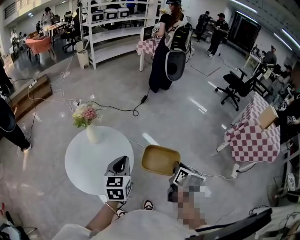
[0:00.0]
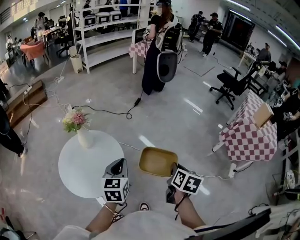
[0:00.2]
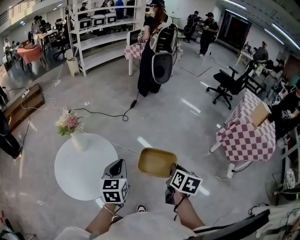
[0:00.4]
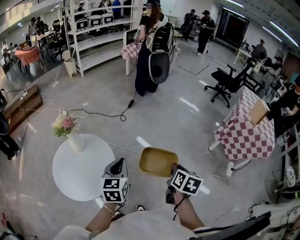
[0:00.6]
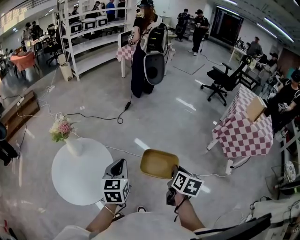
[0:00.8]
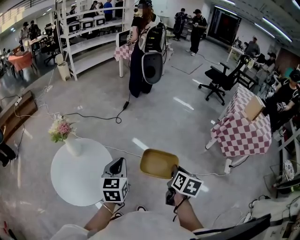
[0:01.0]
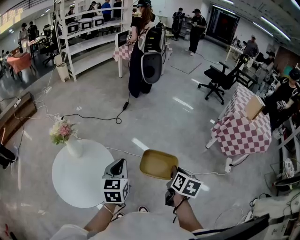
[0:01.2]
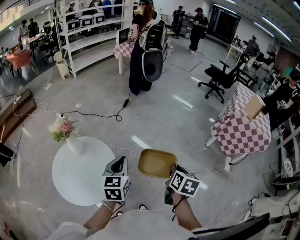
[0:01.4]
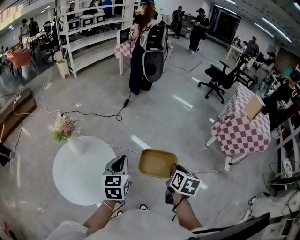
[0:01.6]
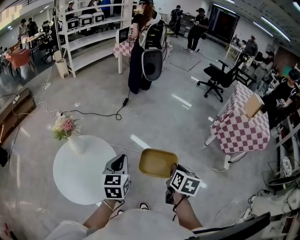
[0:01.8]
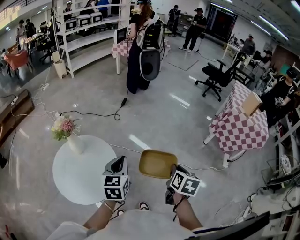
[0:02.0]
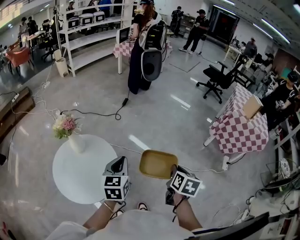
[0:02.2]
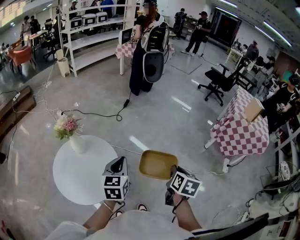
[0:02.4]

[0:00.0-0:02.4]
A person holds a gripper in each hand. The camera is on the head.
0:00.0 to 0:01.2: The left gripper is displaced to the right and forward by approximately 10 cm; the right gripper is displaced to the right by about 10 cm.
0:01.2 to 0:02.4: There are only small adjustments of the grippers.

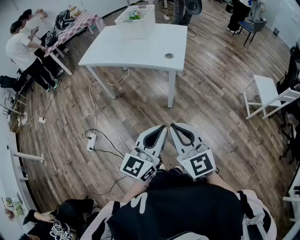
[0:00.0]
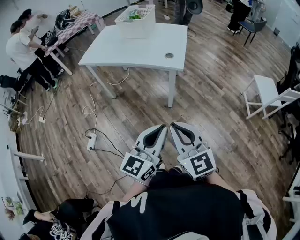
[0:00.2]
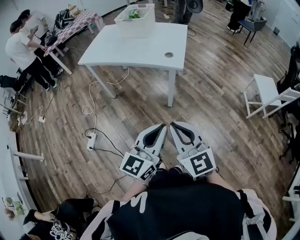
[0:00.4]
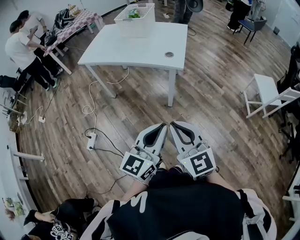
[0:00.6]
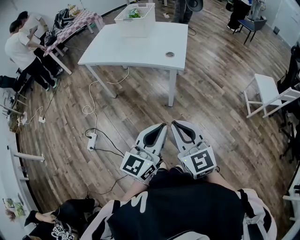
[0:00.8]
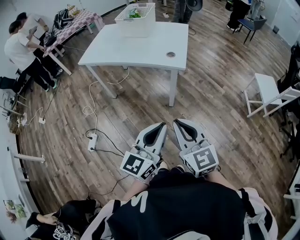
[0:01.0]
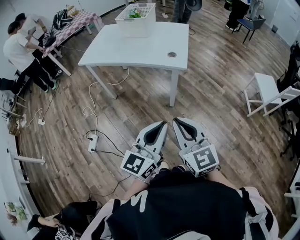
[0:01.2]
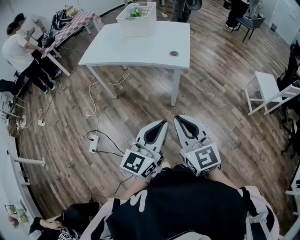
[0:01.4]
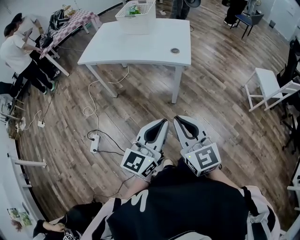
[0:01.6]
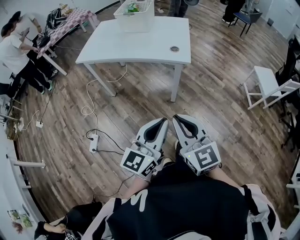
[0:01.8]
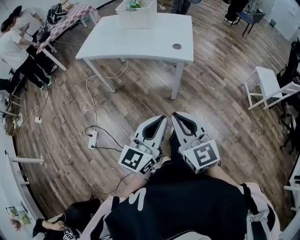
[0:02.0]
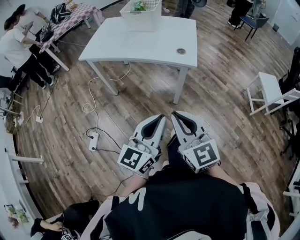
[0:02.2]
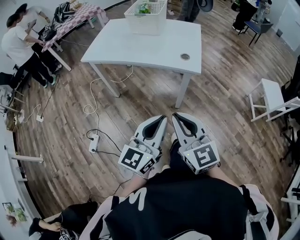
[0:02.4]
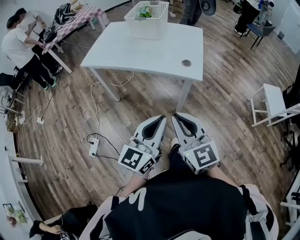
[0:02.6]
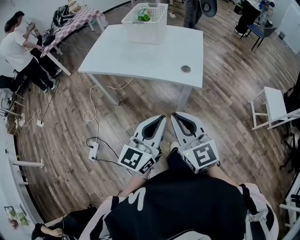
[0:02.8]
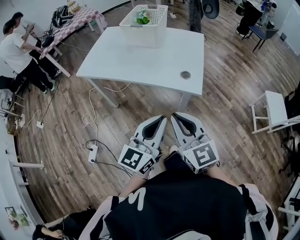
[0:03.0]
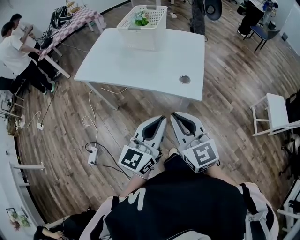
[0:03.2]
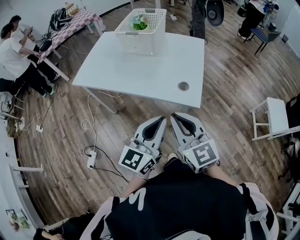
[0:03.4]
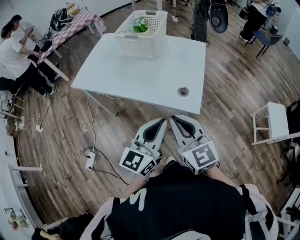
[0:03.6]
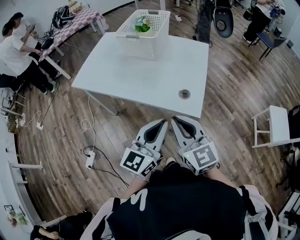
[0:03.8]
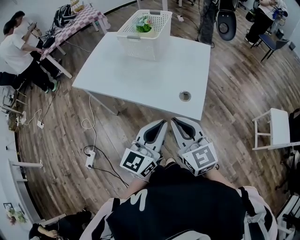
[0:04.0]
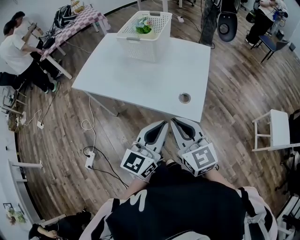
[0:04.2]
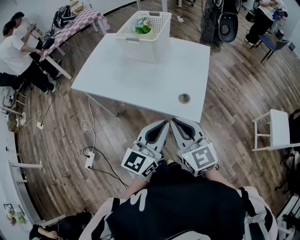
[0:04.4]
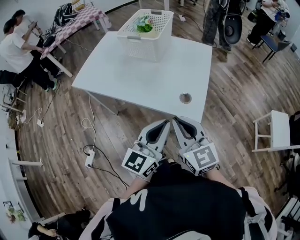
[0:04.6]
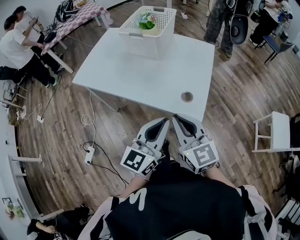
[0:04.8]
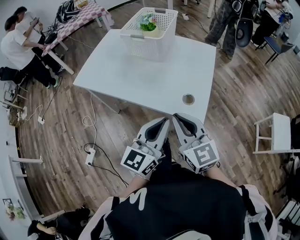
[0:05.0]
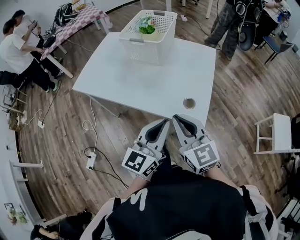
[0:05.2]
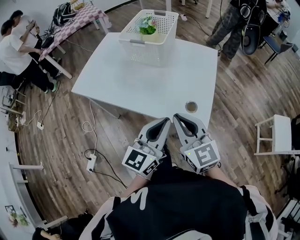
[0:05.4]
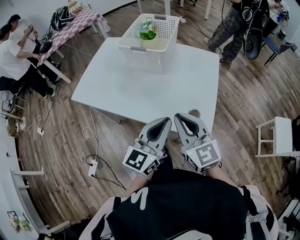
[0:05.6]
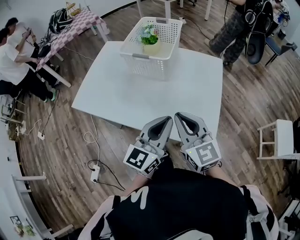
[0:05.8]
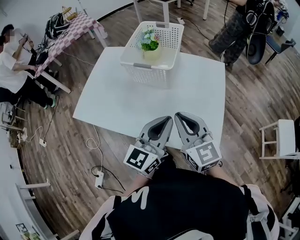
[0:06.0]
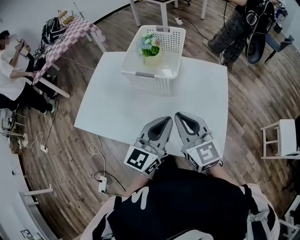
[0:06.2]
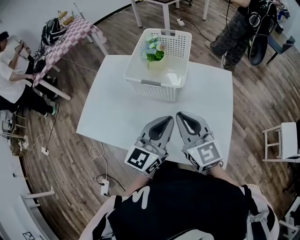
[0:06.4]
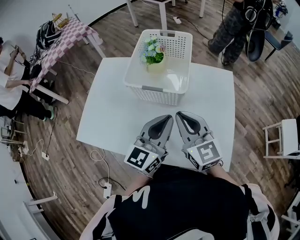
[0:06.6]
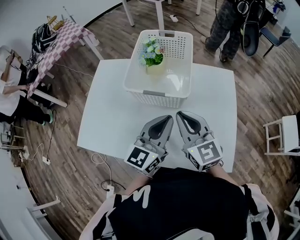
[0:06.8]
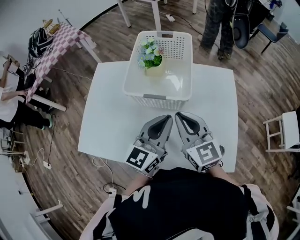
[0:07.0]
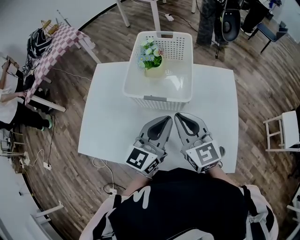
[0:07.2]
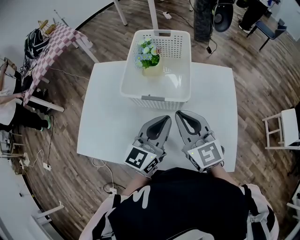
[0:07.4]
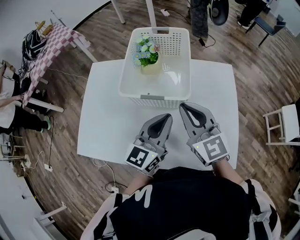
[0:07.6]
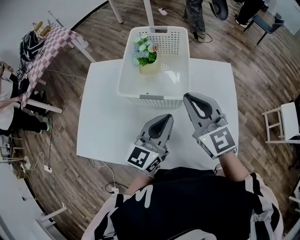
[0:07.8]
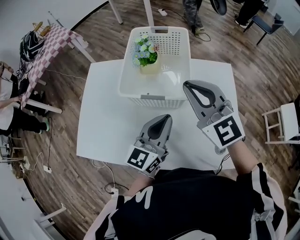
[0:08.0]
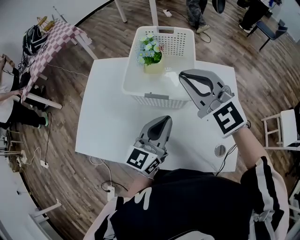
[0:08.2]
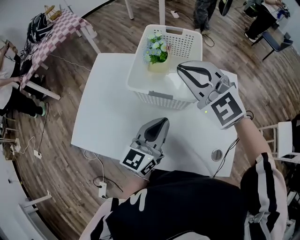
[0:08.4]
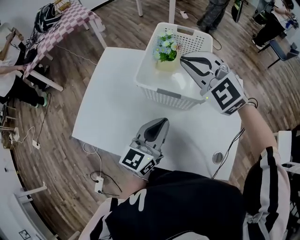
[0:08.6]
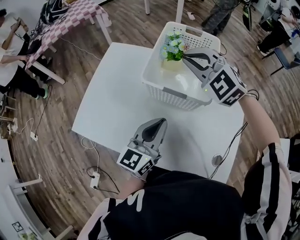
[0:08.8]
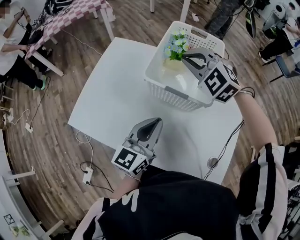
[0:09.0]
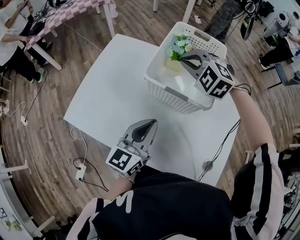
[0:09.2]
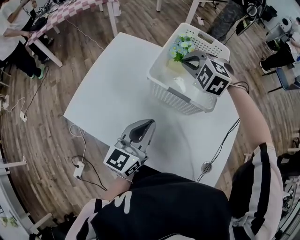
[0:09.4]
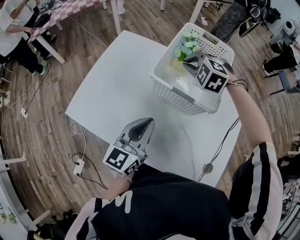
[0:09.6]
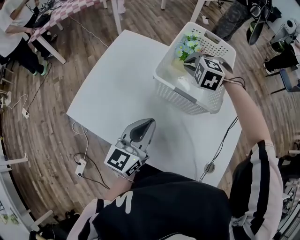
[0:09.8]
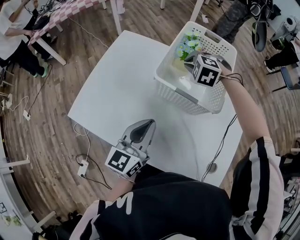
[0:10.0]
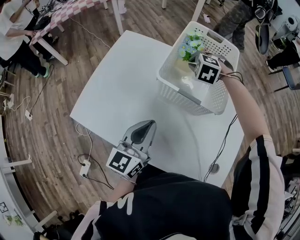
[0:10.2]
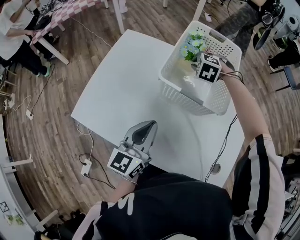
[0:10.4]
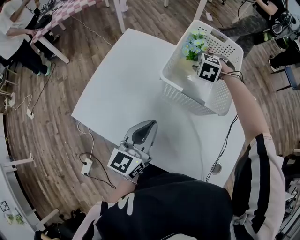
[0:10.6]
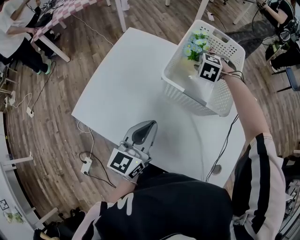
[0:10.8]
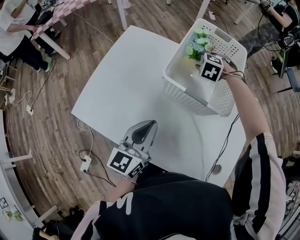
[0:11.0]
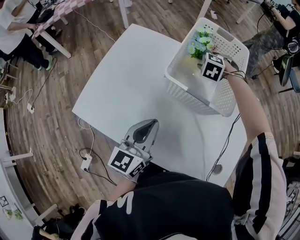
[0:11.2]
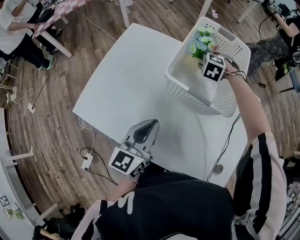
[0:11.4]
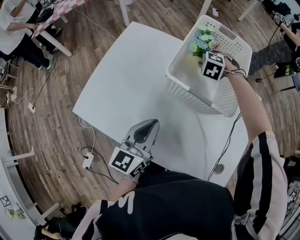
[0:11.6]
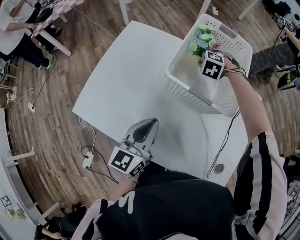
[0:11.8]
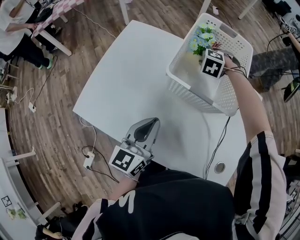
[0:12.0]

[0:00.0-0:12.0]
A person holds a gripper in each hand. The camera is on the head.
0:00.0 to 0:01.6: Both grippers travel together to the left, about 5 cm.
0:01.6 to 0:03.0: Both grippers move forward, some 20 cm.
0:03.0 to 0:04.4: The two grippers go about 15 cm forward.
0:04.4 to 0:06.0: Both grippers move forward, about 20 cm.
0:06.0 to 0:07.6: The right gripper moves forward, approximately 15 cm. Meanwhile the left gripper goes roughly 15 cm forward and to the left.
0:07.6 to 0:09.0: The left gripper travels to the left by roughly 5 cm. The right gripper heads forward and to the left, covering some 20 cm, and rolls counterclockwise, seen from behind, by roughly 50 degrees.
0:09.0 to 0:10.4: The left gripper travels to the left by approximately 5 cm; the right gripper moves downward and forward, some 20 cm, and tips its fingers downward by approximately 30 degrees.
0:10.4 to 0:12.0: The grippers make only small movements.

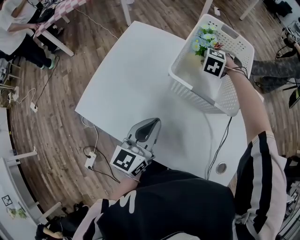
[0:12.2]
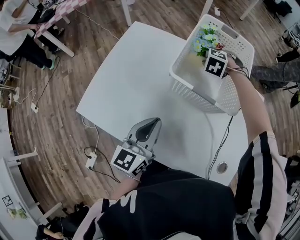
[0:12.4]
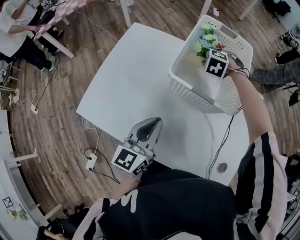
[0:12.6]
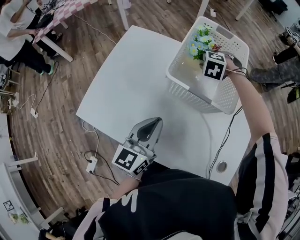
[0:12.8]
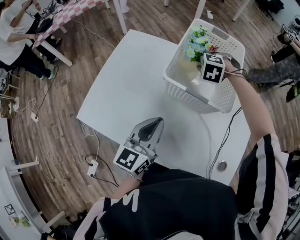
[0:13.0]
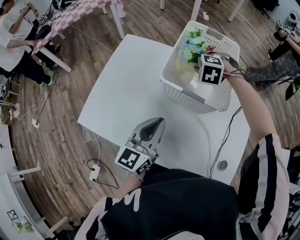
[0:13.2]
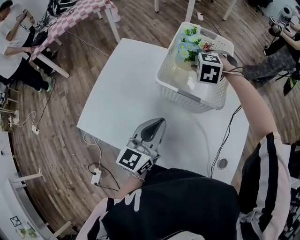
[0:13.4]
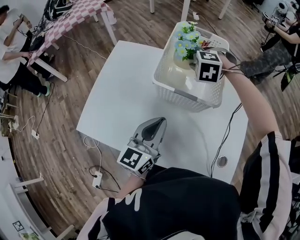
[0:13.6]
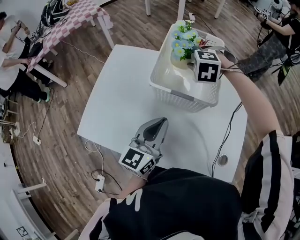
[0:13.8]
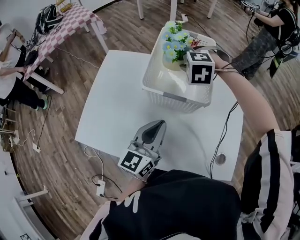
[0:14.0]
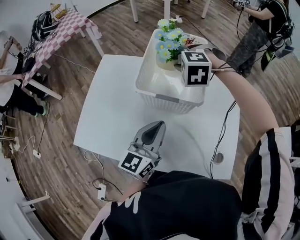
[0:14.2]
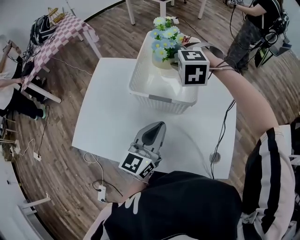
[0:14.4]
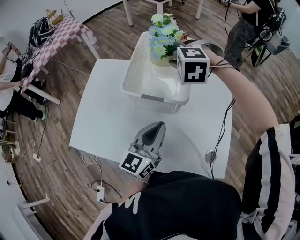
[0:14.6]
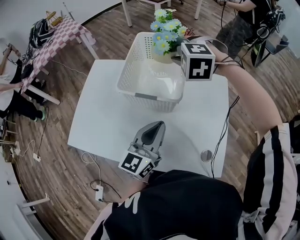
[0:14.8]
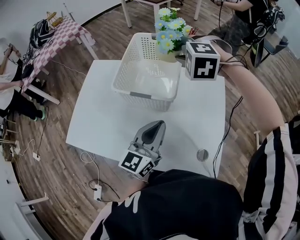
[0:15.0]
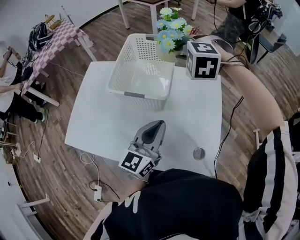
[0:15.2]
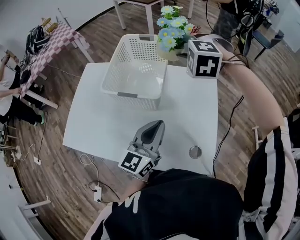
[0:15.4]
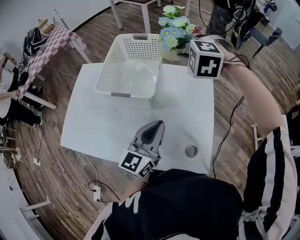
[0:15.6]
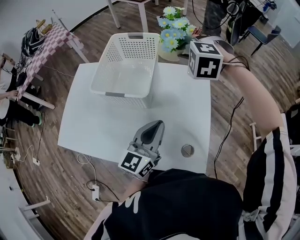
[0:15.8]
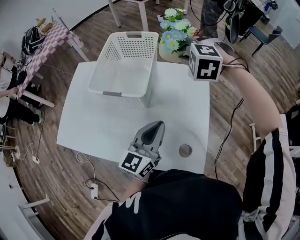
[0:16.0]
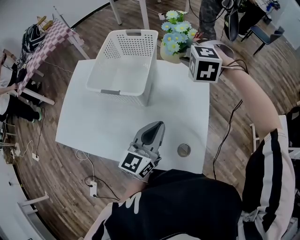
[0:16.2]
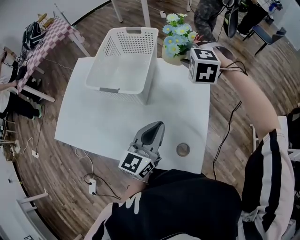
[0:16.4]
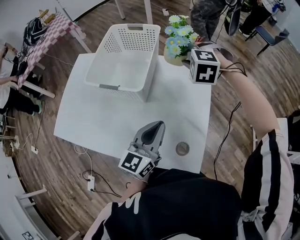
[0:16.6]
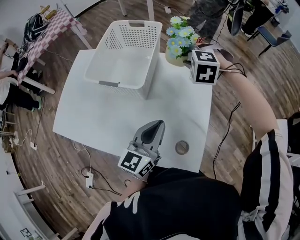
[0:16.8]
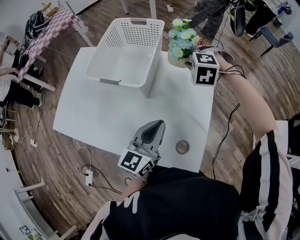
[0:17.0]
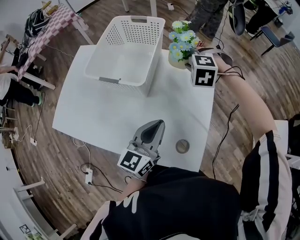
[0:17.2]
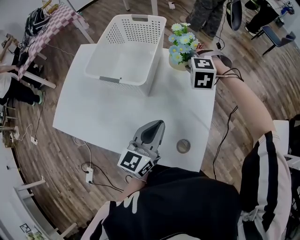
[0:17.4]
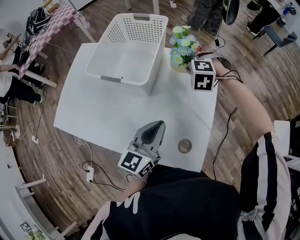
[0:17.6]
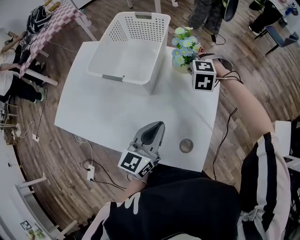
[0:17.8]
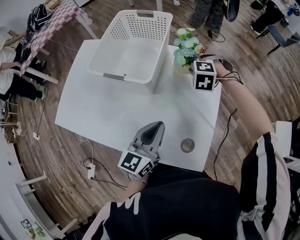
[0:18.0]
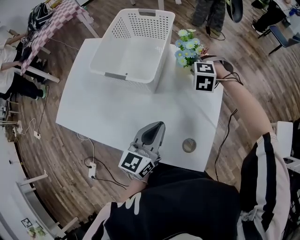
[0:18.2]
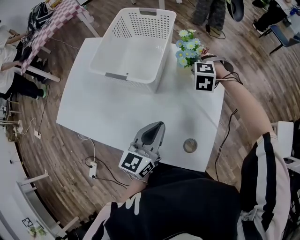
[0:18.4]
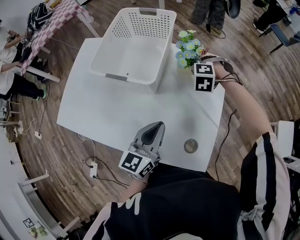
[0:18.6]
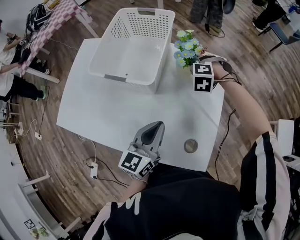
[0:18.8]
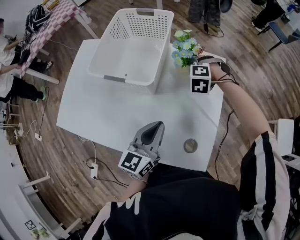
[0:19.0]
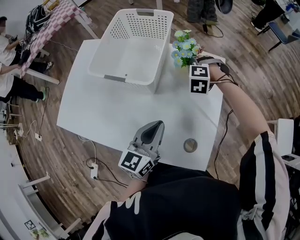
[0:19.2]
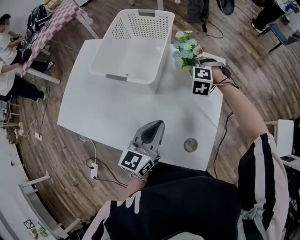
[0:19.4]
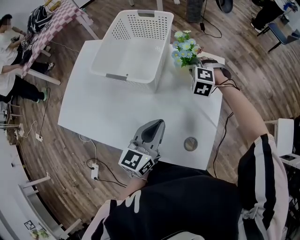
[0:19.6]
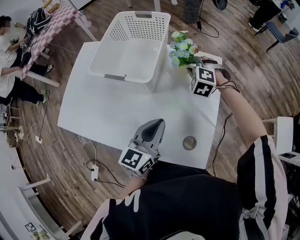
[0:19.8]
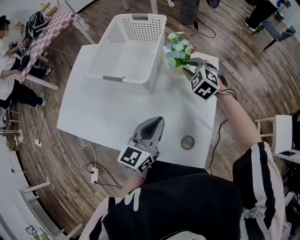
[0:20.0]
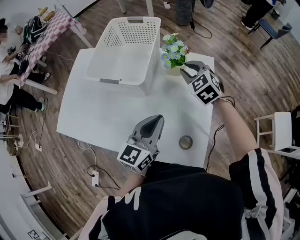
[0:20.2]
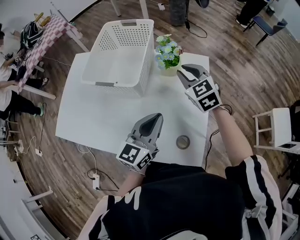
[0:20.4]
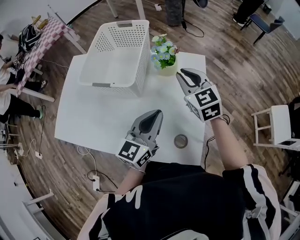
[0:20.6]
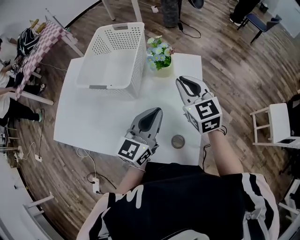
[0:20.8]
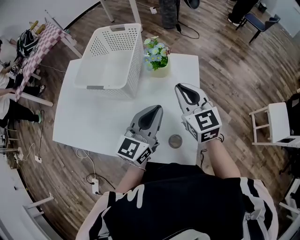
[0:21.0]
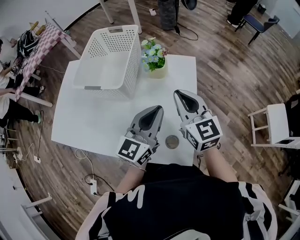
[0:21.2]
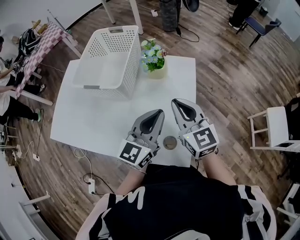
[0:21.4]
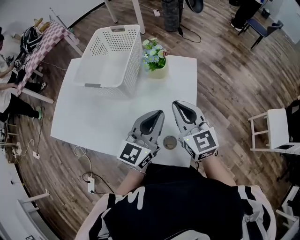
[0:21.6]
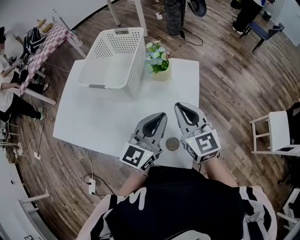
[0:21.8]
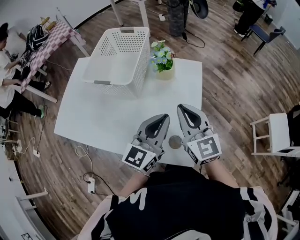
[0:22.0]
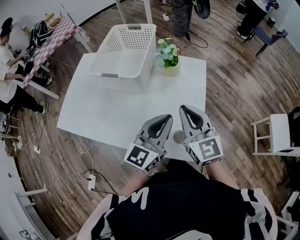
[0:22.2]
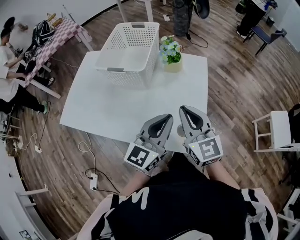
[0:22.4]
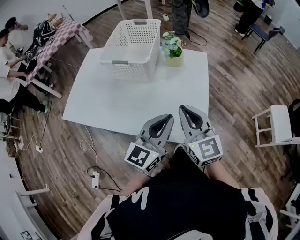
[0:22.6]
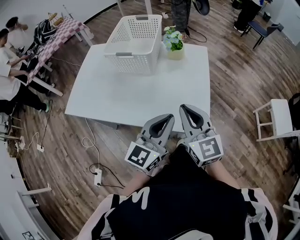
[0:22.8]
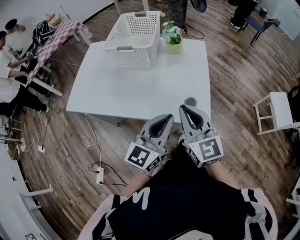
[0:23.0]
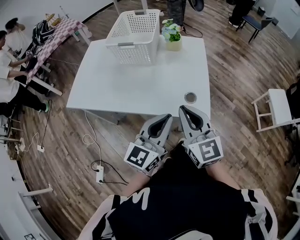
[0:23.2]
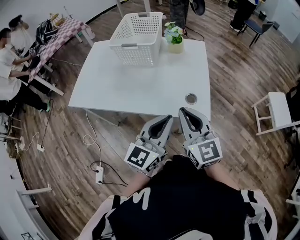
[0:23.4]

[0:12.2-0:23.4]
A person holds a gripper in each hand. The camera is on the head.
0:12.2 to 0:13.8: The left gripper heads to the right, covering roughly 5 cm. The right gripper moves upward and backward, about 15 cm.
0:13.8 to 0:15.4: The right gripper heads to the right and upward, covering some 20 cm. Meanwhile the left gripper heads to the right, covering about 15 cm.
0:15.4 to 0:17.0: The left gripper shifts roughly 5 cm to the right; the right gripper travels downward and to the right by about 15 cm.
0:17.0 to 0:18.6: The right gripper moves downward, approximately 10 cm.
0:18.6 to 0:20.2: The right gripper shifts about 10 cm upward, and angles its fingers upward, by some 30 degrees.
0:20.2 to 0:21.8: The left gripper goes some 10 cm to the right. The right gripper is displaced backward and upward by roughly 20 cm, and rotates roughly 40 degrees.
0:21.8 to 0:23.4: Both grippers travel together backward, roughly 25 cm.
